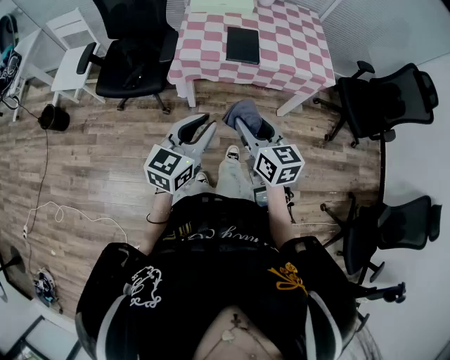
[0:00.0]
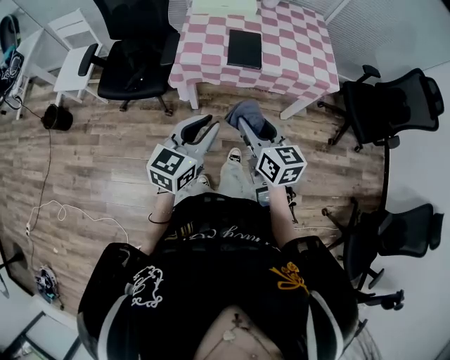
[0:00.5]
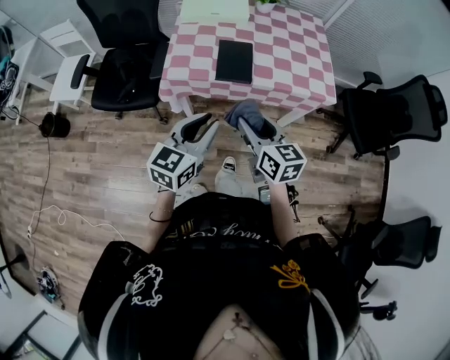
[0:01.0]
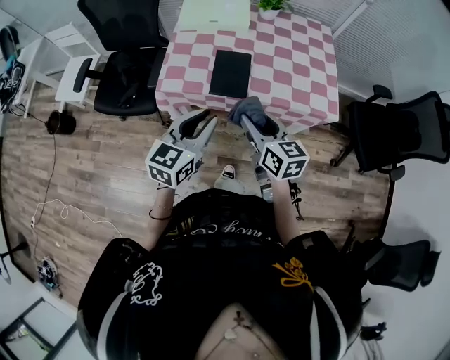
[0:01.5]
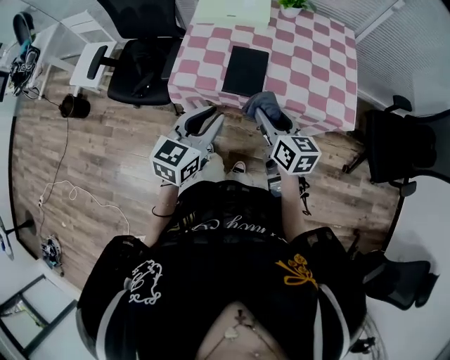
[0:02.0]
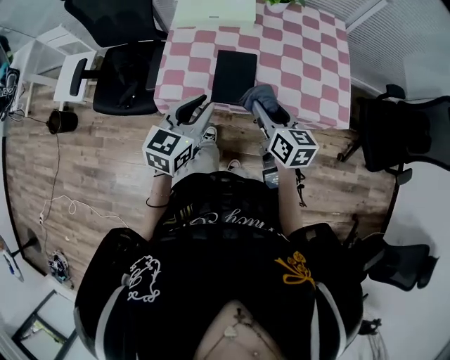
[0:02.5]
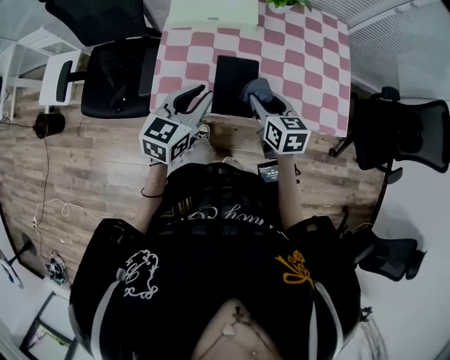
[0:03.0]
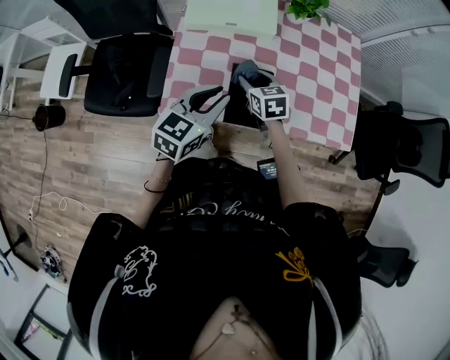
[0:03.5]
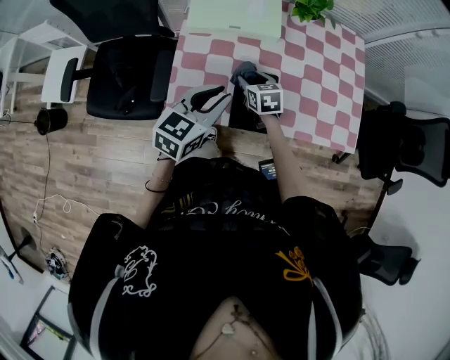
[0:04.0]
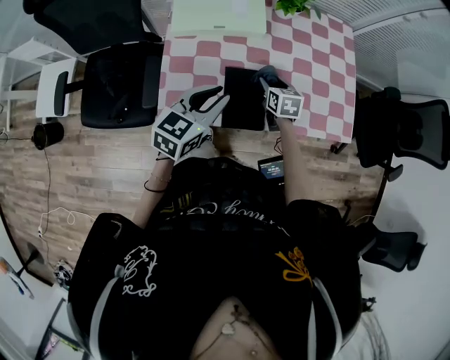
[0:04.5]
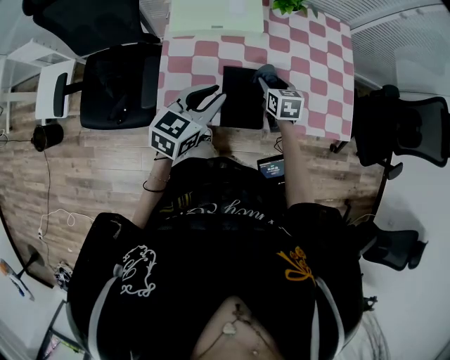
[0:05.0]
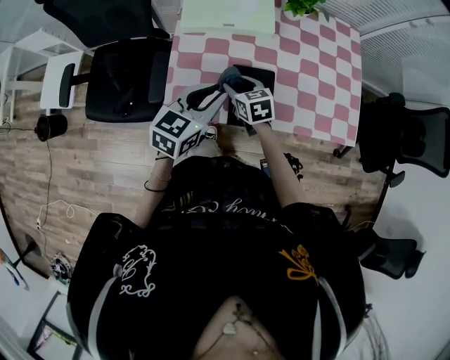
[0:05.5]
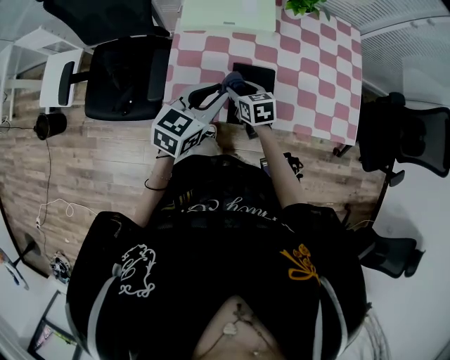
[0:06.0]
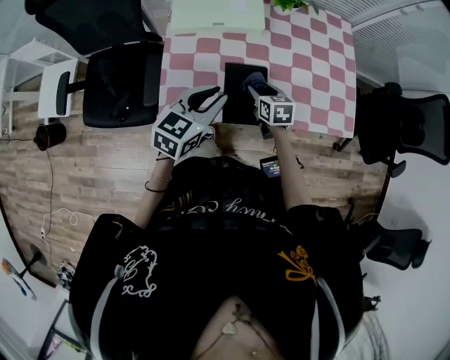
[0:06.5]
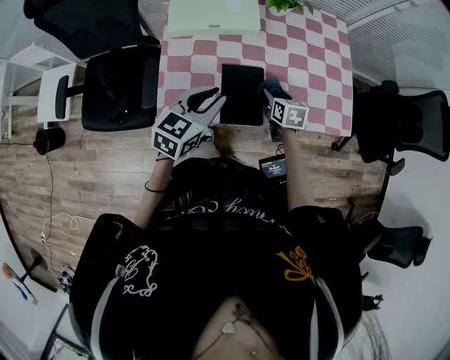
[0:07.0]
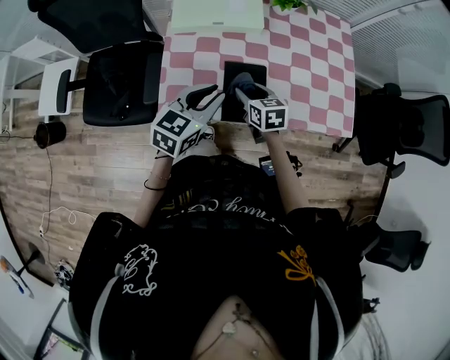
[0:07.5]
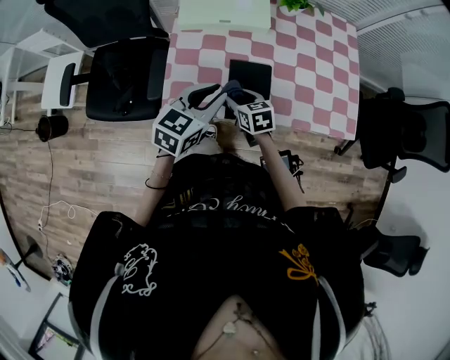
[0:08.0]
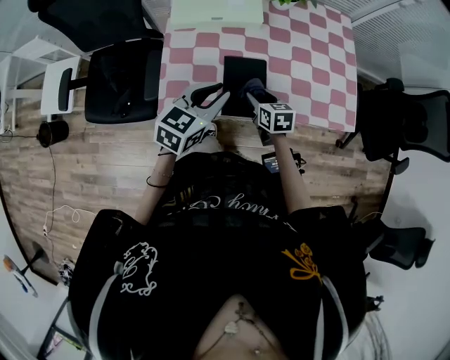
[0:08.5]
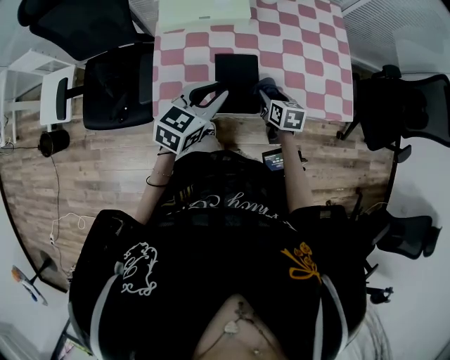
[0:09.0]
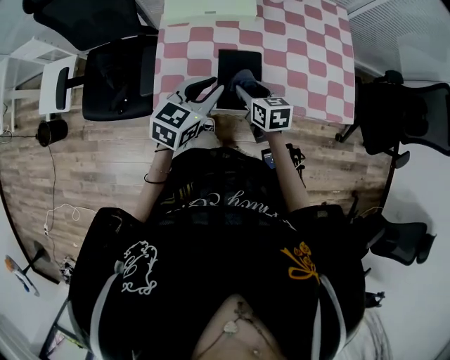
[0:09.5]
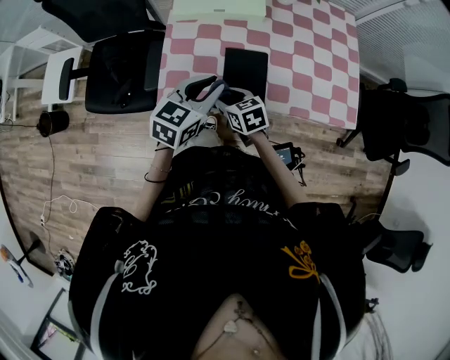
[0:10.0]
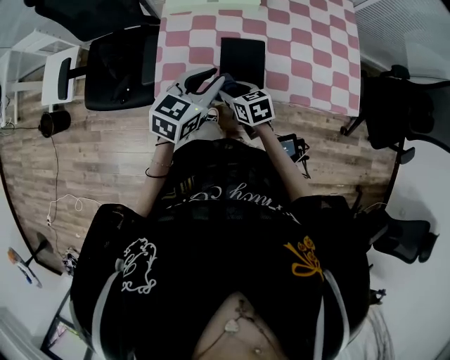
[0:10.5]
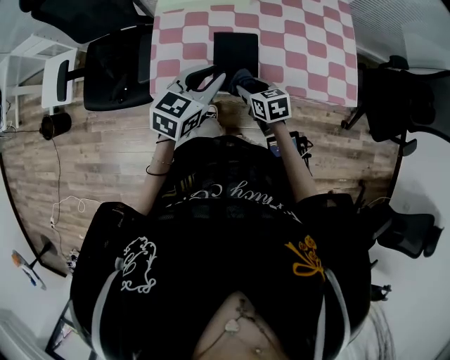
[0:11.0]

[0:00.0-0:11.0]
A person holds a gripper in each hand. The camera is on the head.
0:00.0 to 0:02.0: The two grippers go roughly 25 cm forward and to the right.
0:02.0 to 0:03.5: The left gripper is displaced forward by roughly 20 cm. The right gripper is displaced forward, to the left and downward by roughly 30 cm, and changes its angle by roughly 30 degrees.
0:03.5 to 0:05.5: The right gripper goes to the right and returns, about 10 cm each way.
0:05.5 to 0:07.5: The right gripper moves to the right, about 5 cm.
0:07.5 to 0:09.0: The right gripper is displaced to the right by approximately 10 cm.
0:09.0 to 0:11.0: The right gripper moves to the left and backward, about 10 cm, and turns by about 20 degrees.

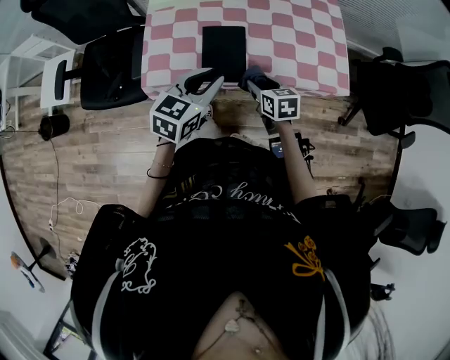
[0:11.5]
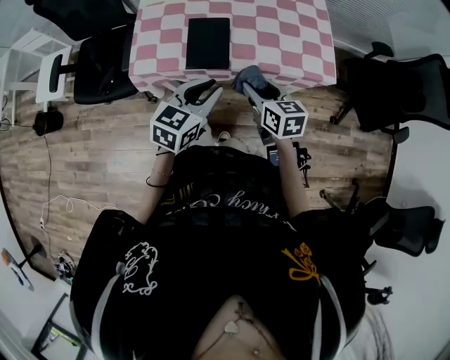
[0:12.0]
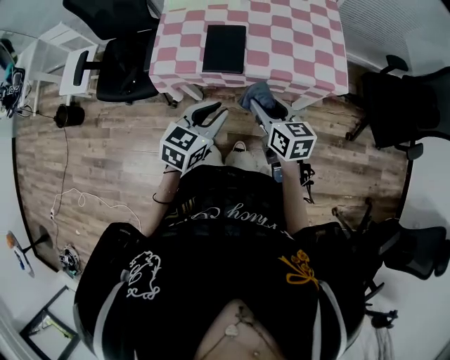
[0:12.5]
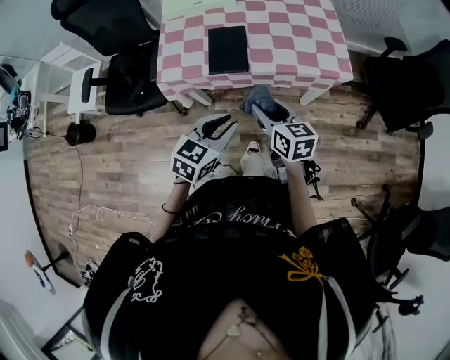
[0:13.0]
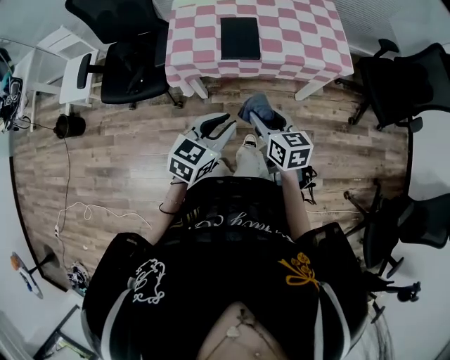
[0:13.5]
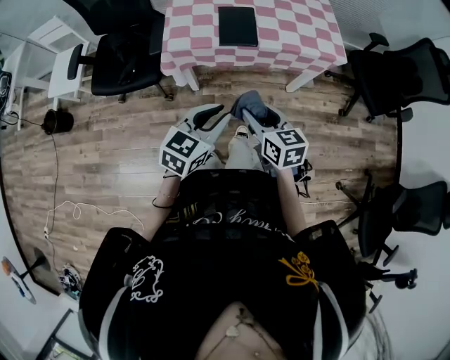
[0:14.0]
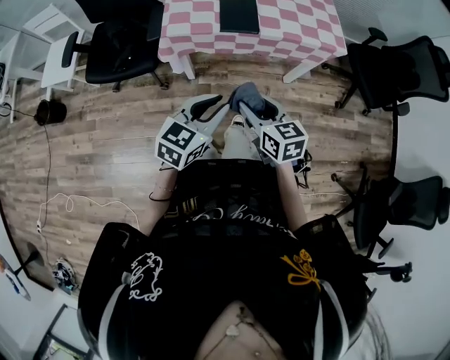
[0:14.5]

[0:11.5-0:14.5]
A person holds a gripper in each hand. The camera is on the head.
0:11.5 to 0:13.0: The right gripper is displaced backward and upward by some 20 cm, and swivels some 20 degrees, while the left gripper moves backward, some 20 cm.
0:13.0 to 0:14.5: Both grippers travel together backward and to the left, about 20 cm.

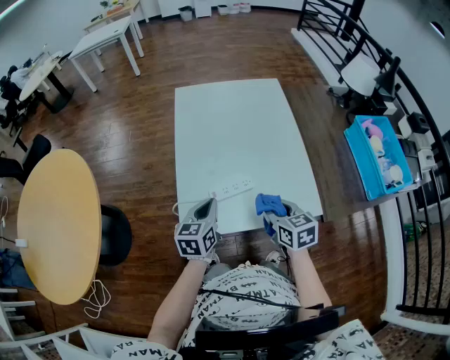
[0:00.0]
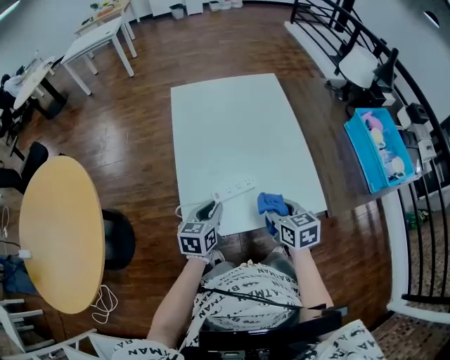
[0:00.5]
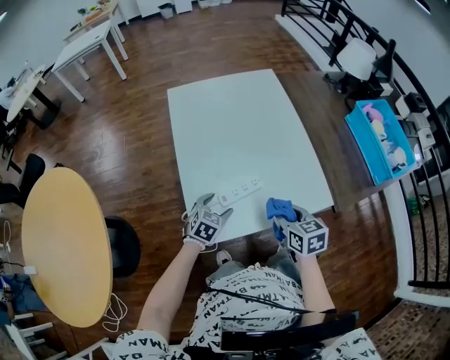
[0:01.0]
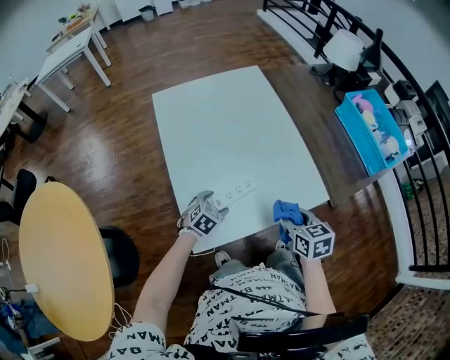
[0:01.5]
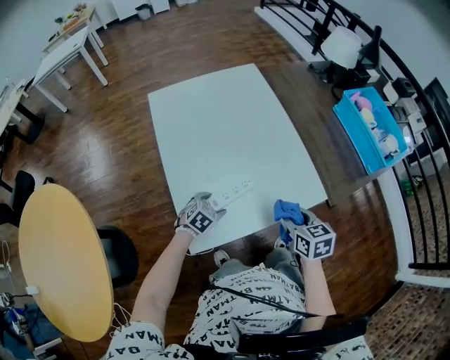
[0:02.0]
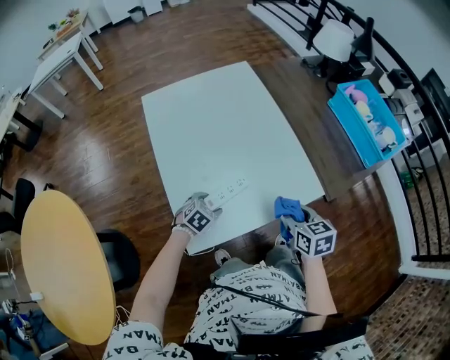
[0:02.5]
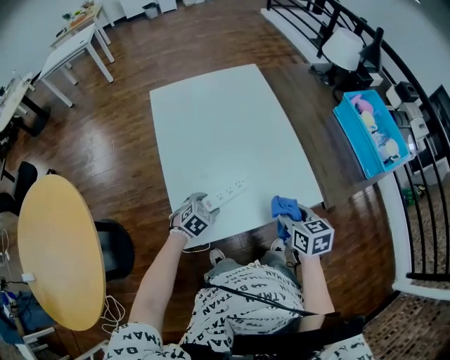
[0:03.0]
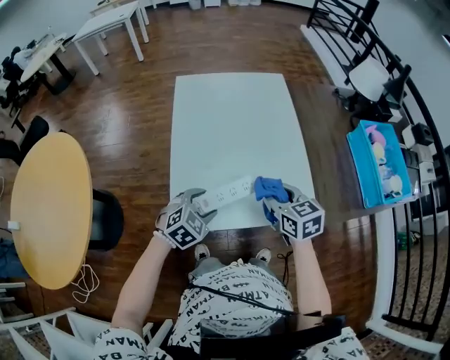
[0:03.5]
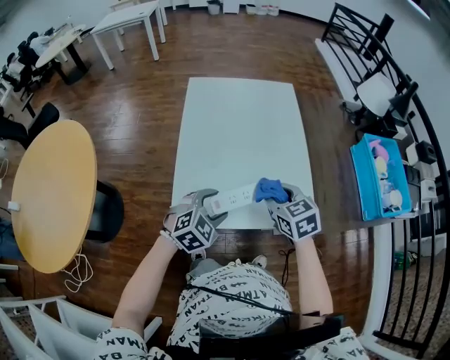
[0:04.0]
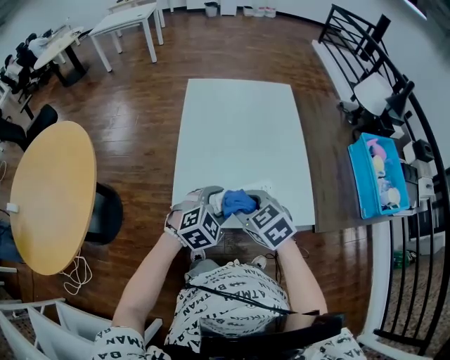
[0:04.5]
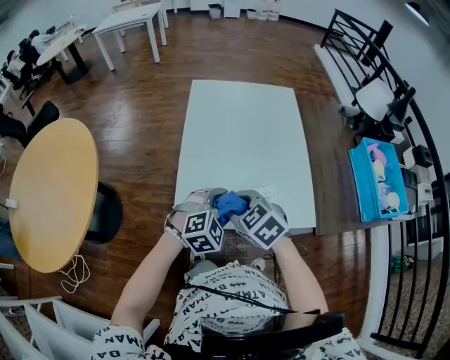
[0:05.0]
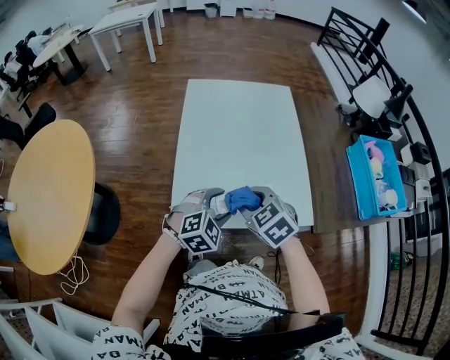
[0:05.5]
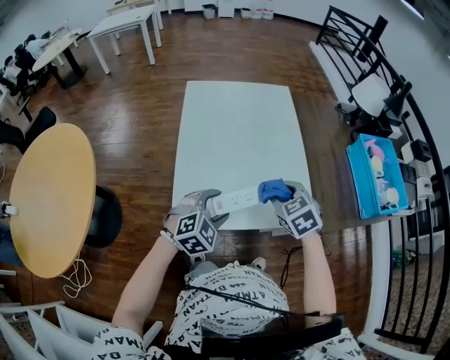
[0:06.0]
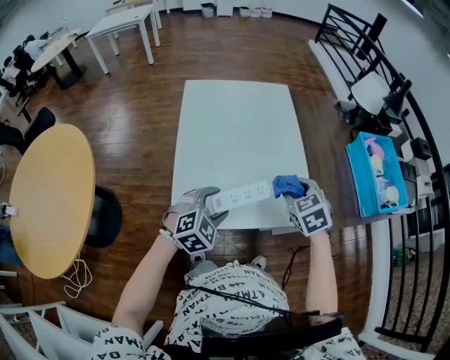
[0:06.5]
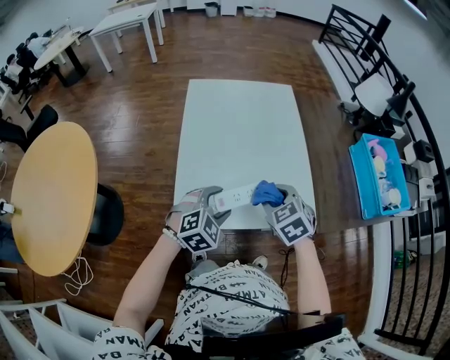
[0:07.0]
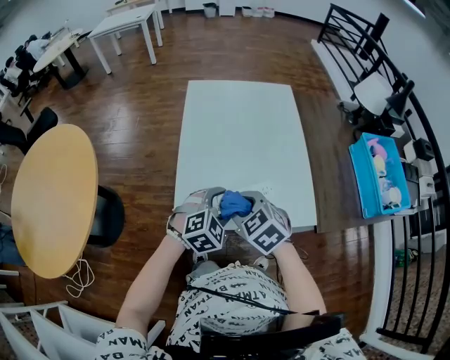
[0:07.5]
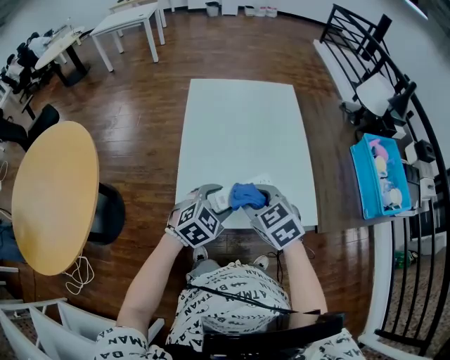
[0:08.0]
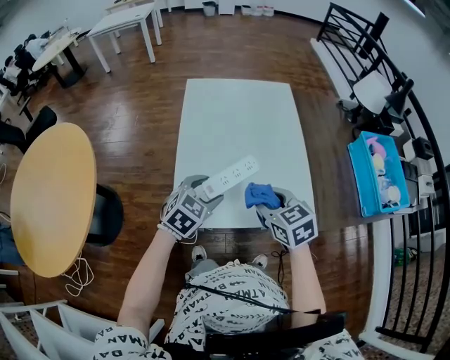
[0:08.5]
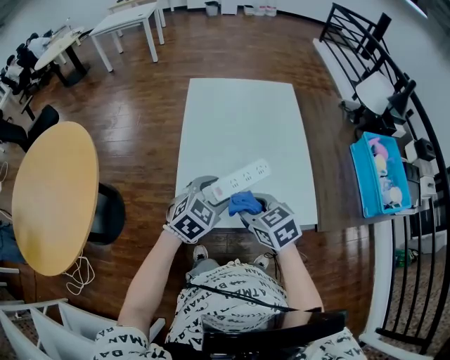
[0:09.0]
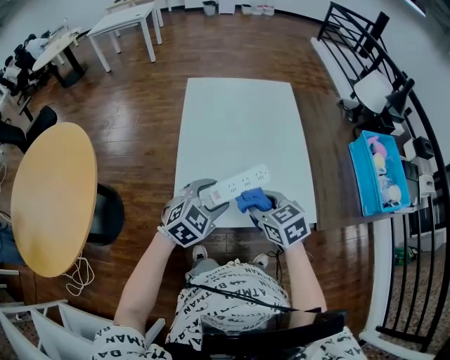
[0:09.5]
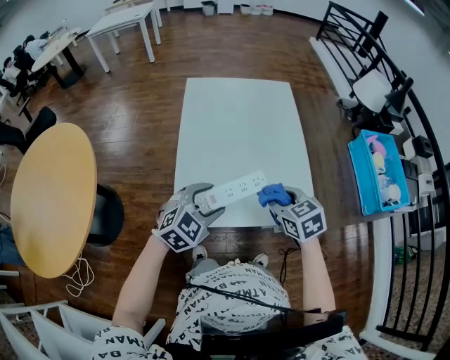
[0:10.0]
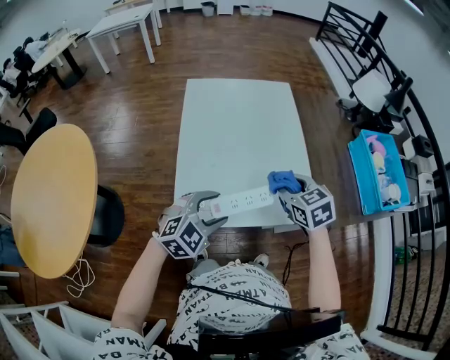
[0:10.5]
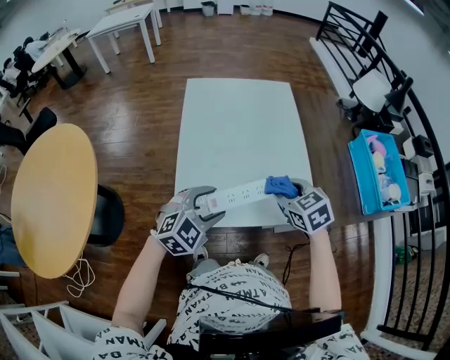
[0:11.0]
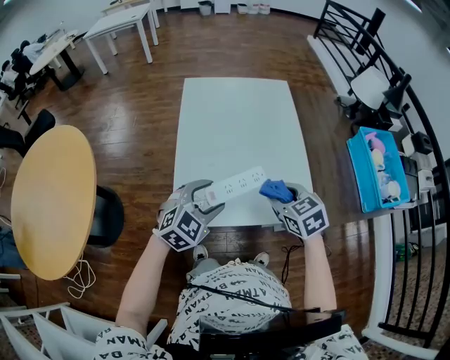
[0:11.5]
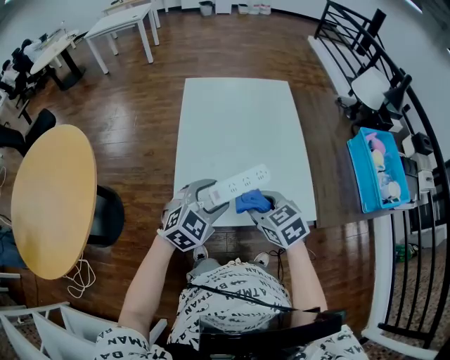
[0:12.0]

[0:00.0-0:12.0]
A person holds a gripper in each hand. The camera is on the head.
0:00.0 to 0:02.0: The left gripper heads downward, covering some 15 cm, tilts its fingers some 30 degrees downward, and opens.
0:02.0 to 0:04.0: The right gripper goes roughly 10 cm forward and upward, and turns by roughly 40 degrees. The left gripper goes roughly 20 cm upward, and swivels some 20 degrees.
0:04.0 to 0:06.0: The right gripper reaches about 15 cm to the left, then returns.
0:06.0 to 0:08.0: The right gripper heads to the left, covering roughly 10 cm.
0:08.0 to 0:10.0: The right gripper moves left and right over some 10 cm, changing direction 2 times.
0:10.0 to 0:12.0: The right gripper is displaced to the left by roughly 5 cm.

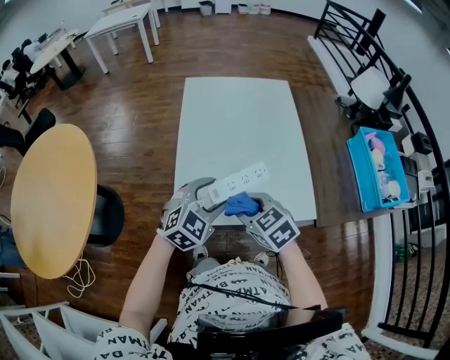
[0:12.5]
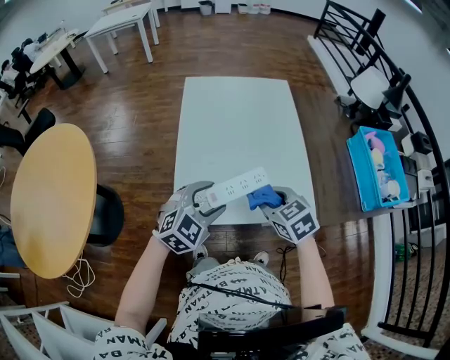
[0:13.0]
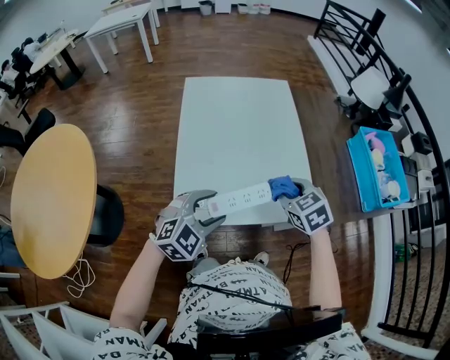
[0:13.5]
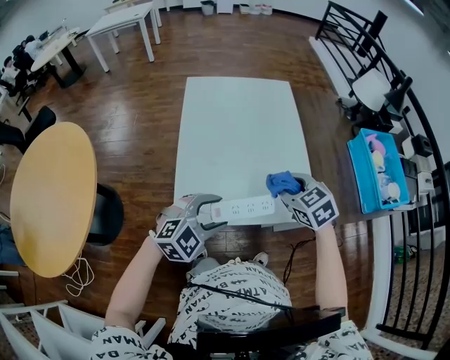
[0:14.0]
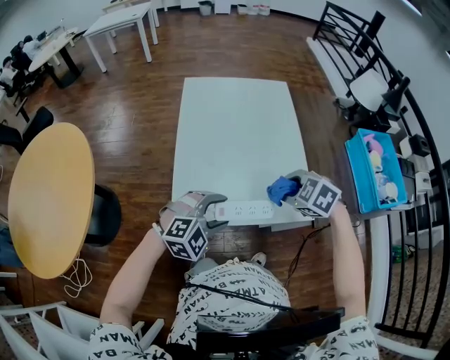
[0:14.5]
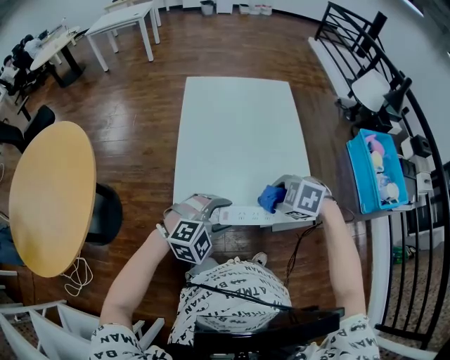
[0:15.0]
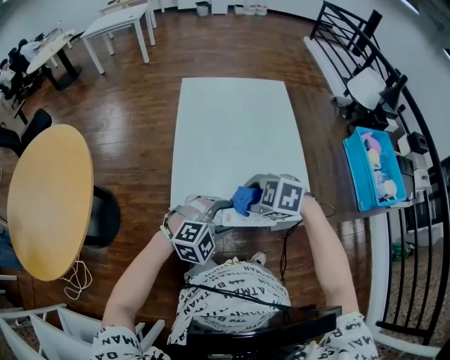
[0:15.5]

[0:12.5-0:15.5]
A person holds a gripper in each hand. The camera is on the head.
0:12.5 to 0:14.0: The right gripper moves to the right and forward, approximately 15 cm; the left gripper is displaced backward by about 5 cm.
0:14.0 to 0:15.5: The left gripper moves some 5 cm. Meanwhile the right gripper shifts by approximately 15 cm, and changes its angle by roughly 40 degrees.
